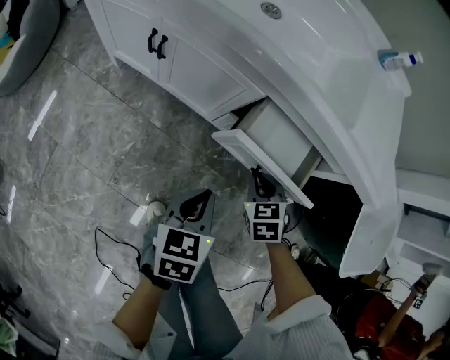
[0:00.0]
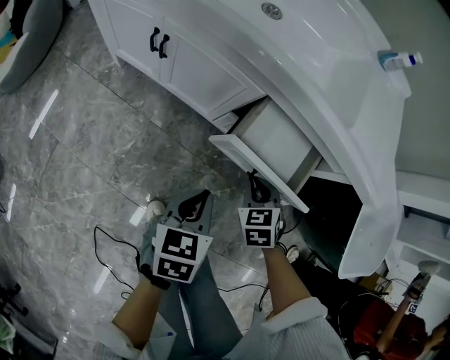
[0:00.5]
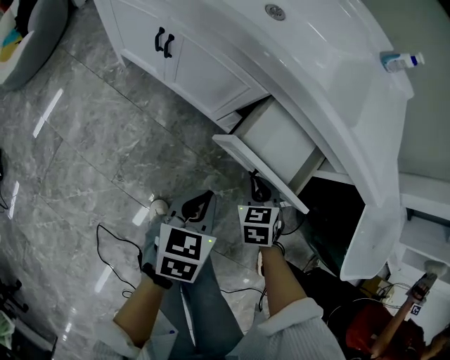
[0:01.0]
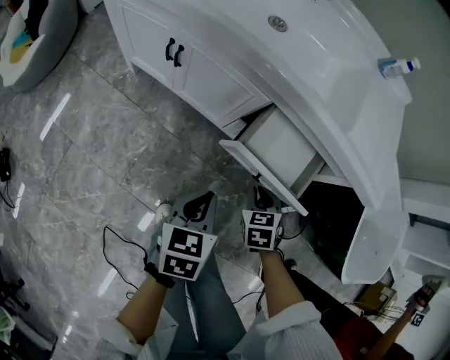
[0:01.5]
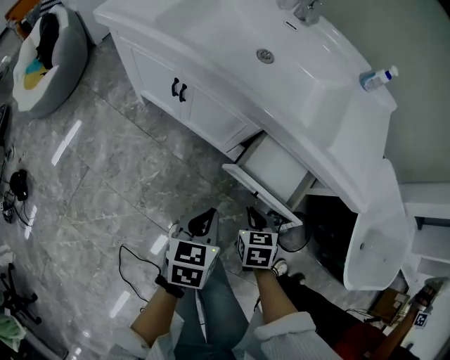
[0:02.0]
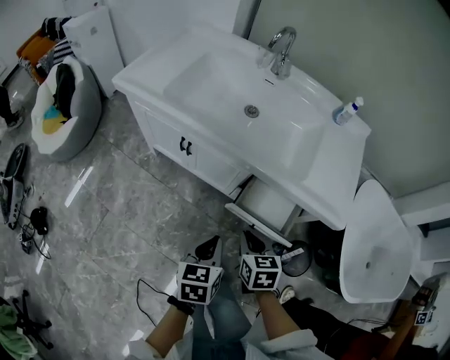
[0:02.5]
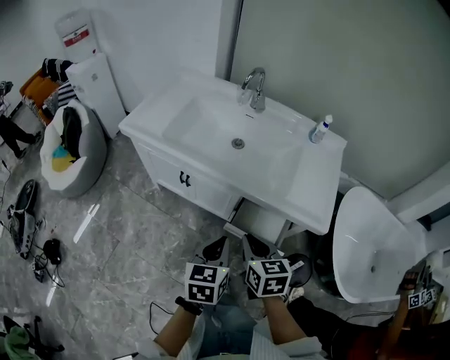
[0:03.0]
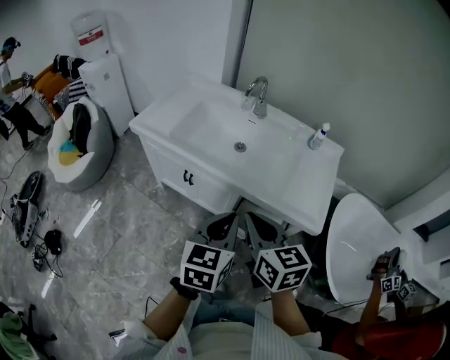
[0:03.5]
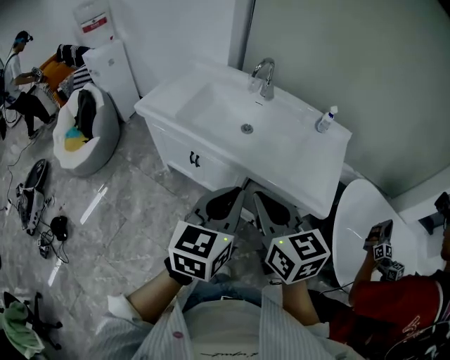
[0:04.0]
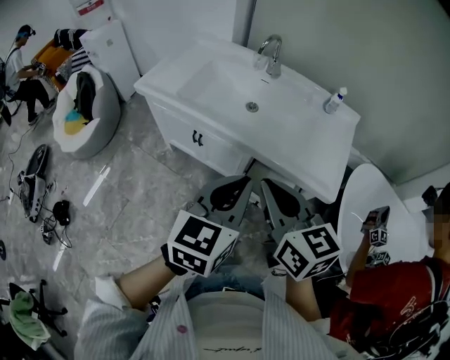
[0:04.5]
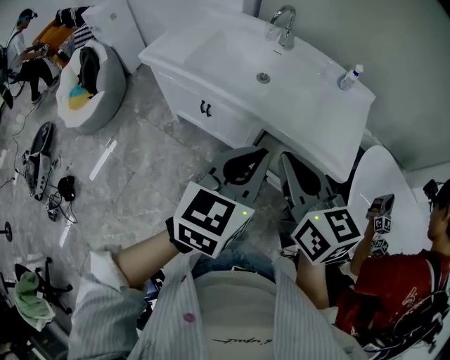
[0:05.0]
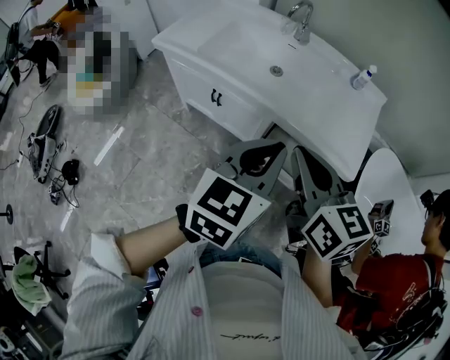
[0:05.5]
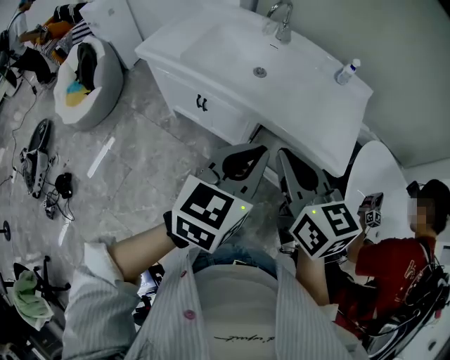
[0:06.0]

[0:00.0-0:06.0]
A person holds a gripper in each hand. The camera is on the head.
0:00.0 to 0:02.0: The right gripper travels backward and upward by some 10 cm; the left gripper shifts roughly 5 cm upward.
0:02.0 to 0:04.0: The two grippers go roughly 40 cm upward. The right gripper tilts its fingers approximately 40 degrees upward; the left gripper turns by approximately 30 degrees.
0:04.0 to 0:06.0: The grippers make only small movements.

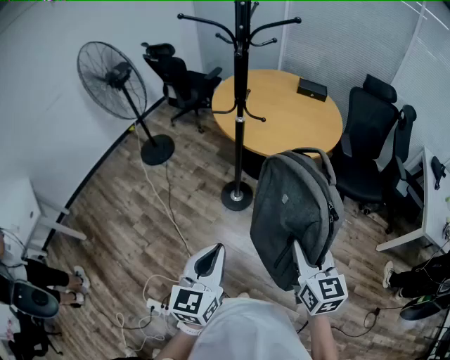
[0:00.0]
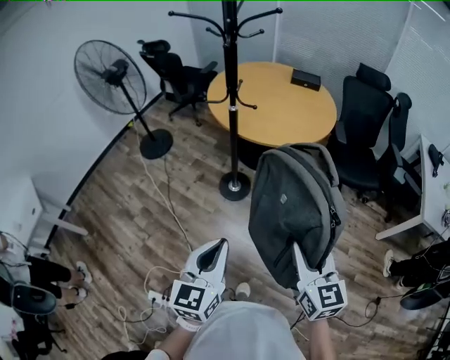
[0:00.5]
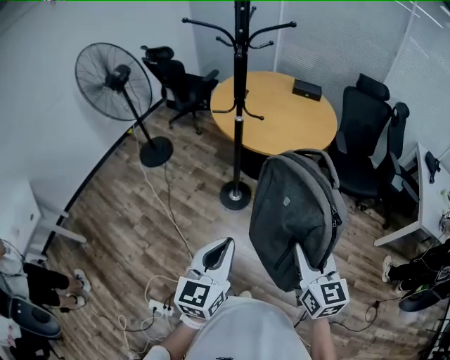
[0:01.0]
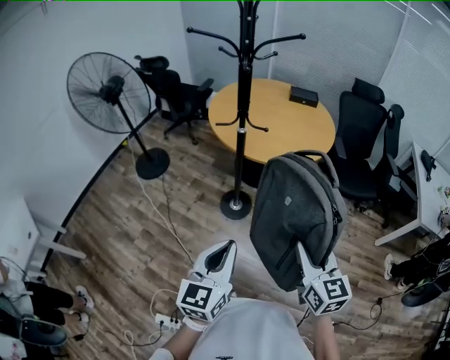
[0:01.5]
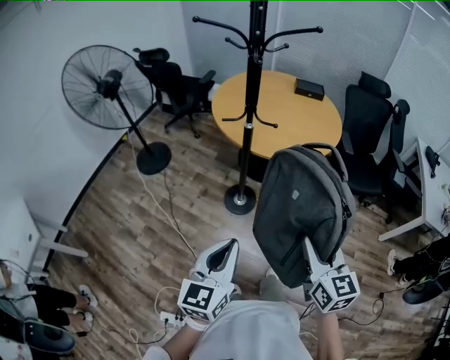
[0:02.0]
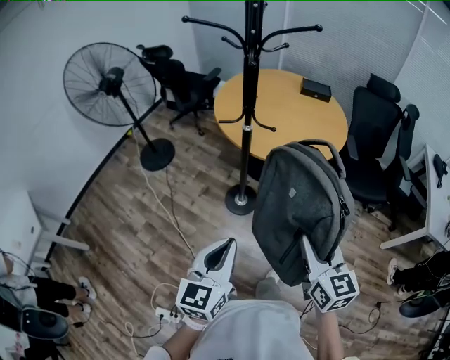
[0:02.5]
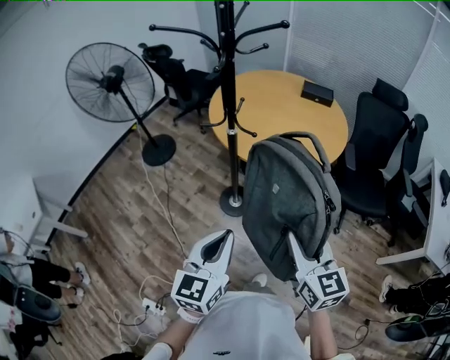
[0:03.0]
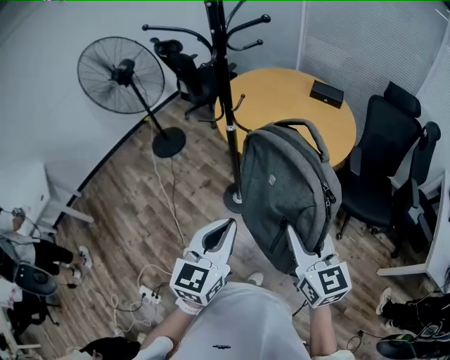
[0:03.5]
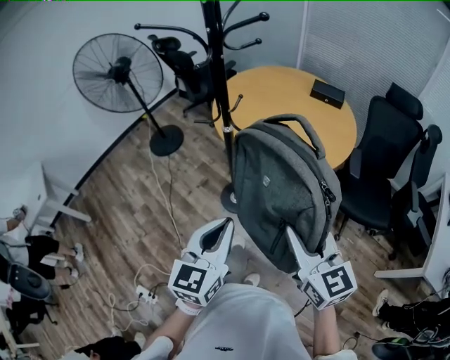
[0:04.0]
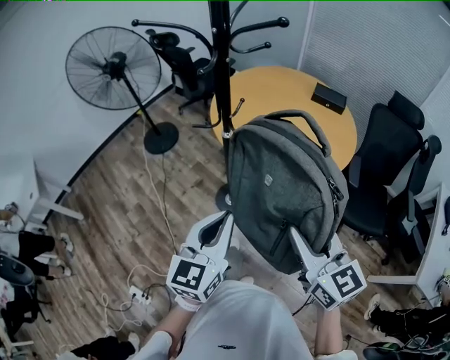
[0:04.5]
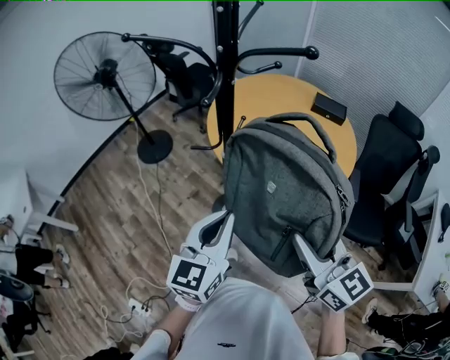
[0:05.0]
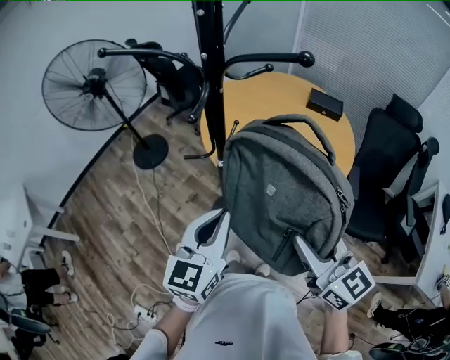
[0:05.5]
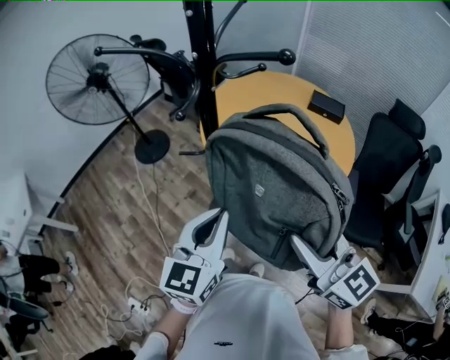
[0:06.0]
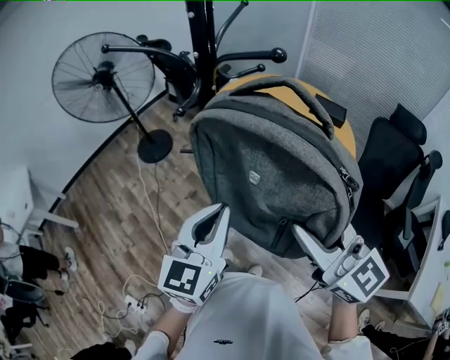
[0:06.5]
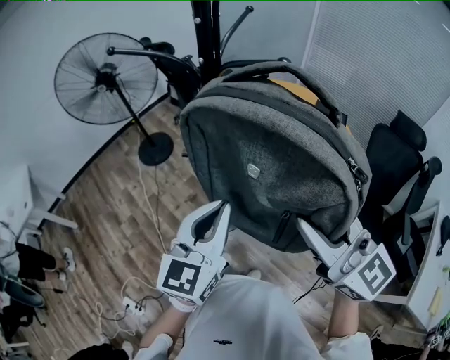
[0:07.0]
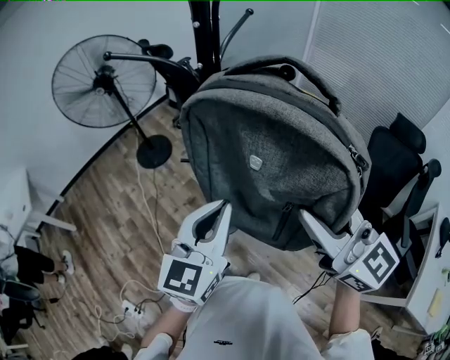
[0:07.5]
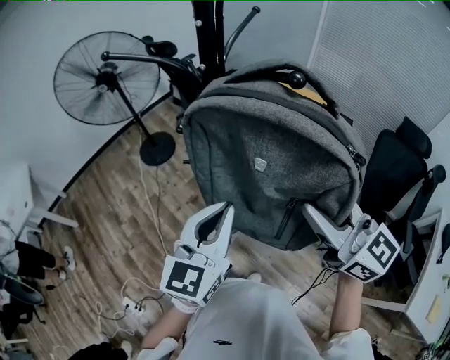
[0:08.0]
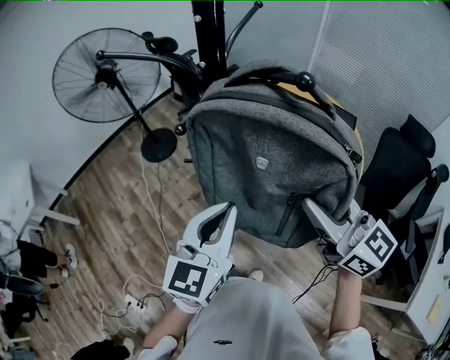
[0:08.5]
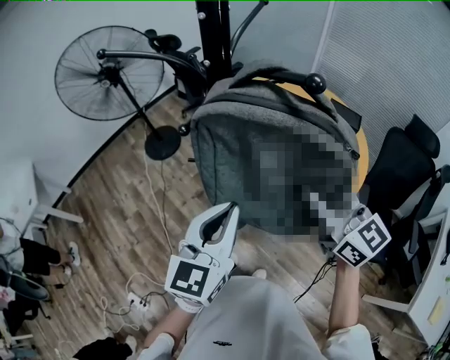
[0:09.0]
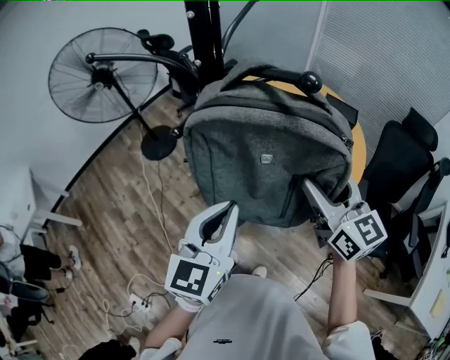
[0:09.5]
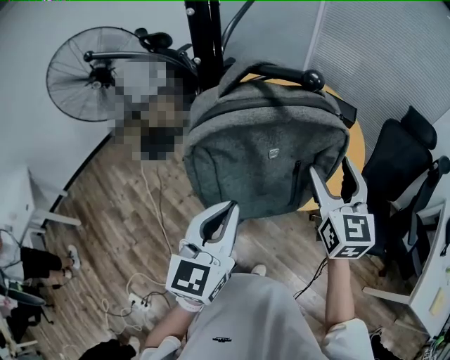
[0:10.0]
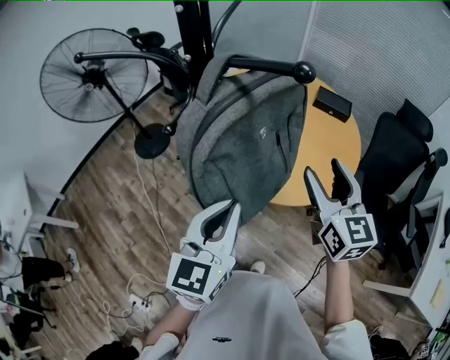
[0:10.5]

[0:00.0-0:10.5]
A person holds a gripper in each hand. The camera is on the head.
0:00.0 to 0:02.0: The two grippers go roughly 5 cm to the left.
0:02.0 to 0:04.0: Both grippers move to the right and forward, roughly 20 cm. The right gripper changes its angle by approximately 30 degrees.
0:04.0 to 0:06.5: The grippers both shift forward and upward by approximately 20 cm. The right gripper rotates roughly 20 degrees.
0:06.5 to 0:08.5: The left gripper moves about 5 cm. Meanwhile the right gripper shifts some 10 cm forward.
0:08.5 to 0:10.5: The right gripper travels forward, to the right and downward by approximately 10 cm, turns by approximately 40 degrees, and opens its fingers.

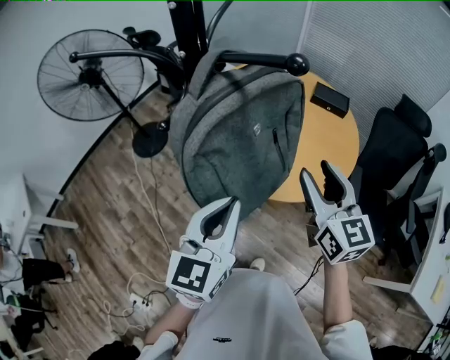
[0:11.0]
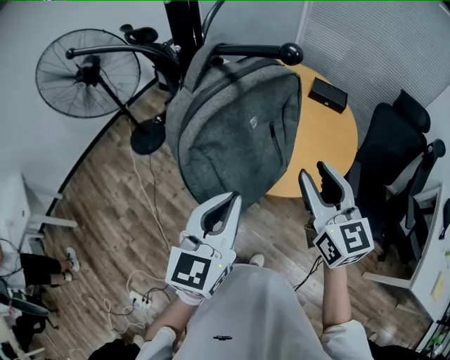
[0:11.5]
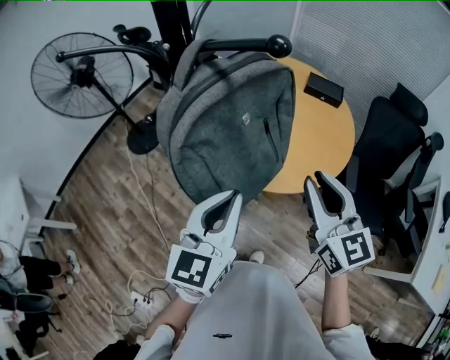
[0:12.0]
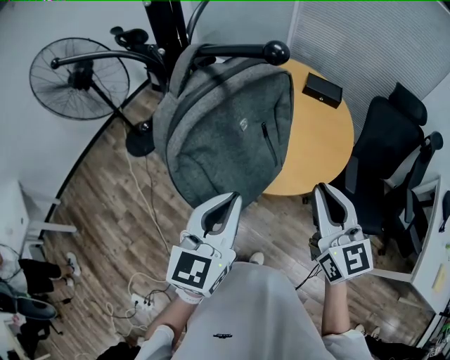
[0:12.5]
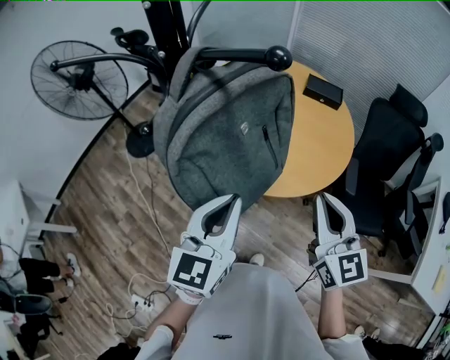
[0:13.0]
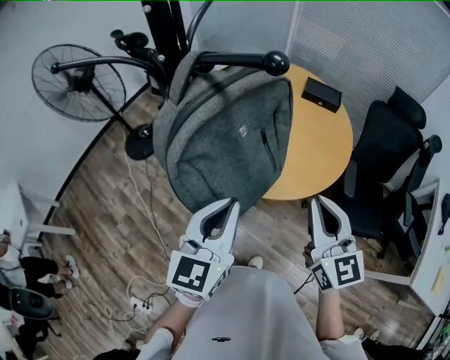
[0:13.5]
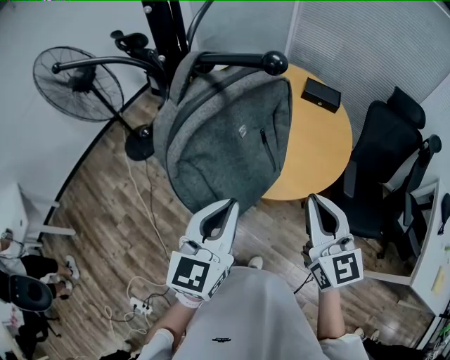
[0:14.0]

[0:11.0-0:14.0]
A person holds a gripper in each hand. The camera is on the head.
0:11.0 to 0:12.5: The right gripper heads backward, covering approximately 5 cm, and closes up.
0:12.5 to 0:14.0: Both grippers stay put.

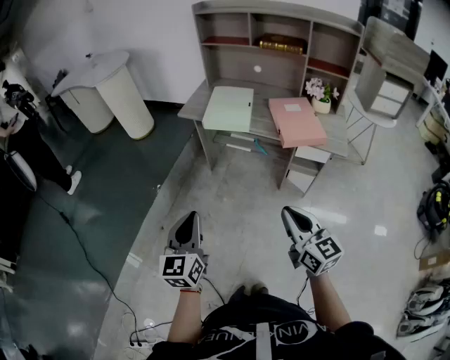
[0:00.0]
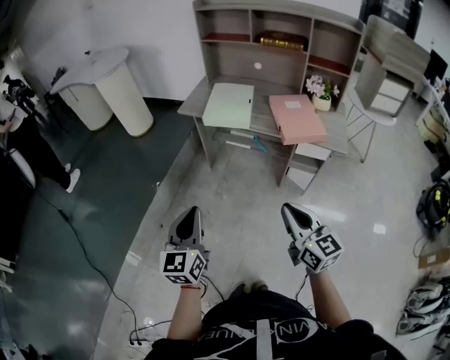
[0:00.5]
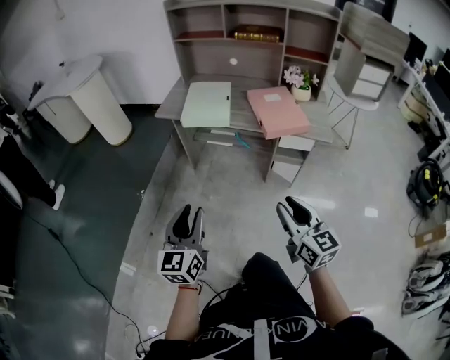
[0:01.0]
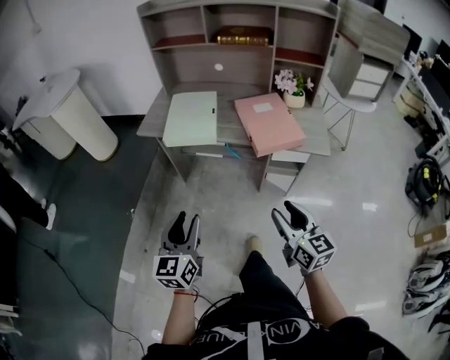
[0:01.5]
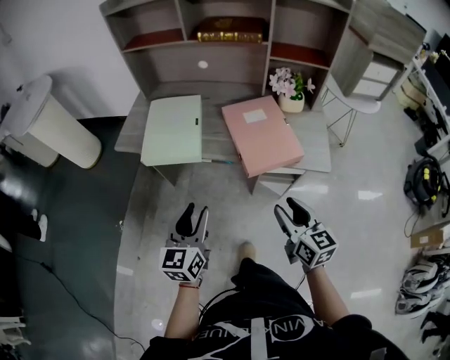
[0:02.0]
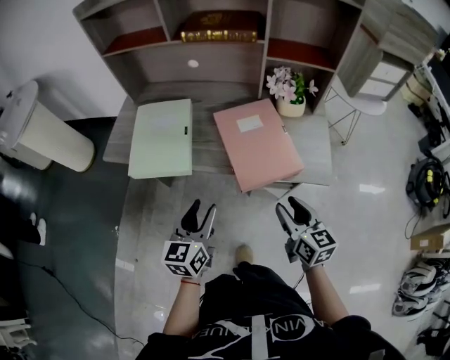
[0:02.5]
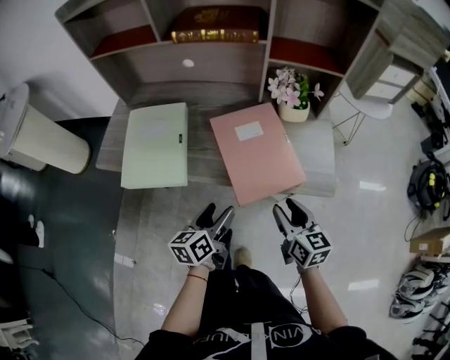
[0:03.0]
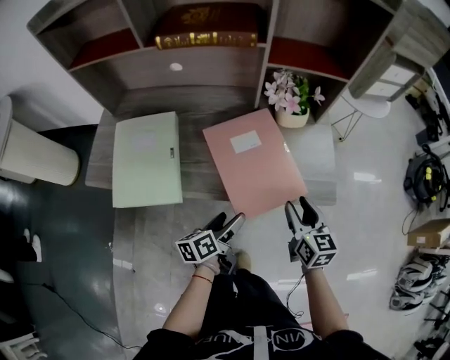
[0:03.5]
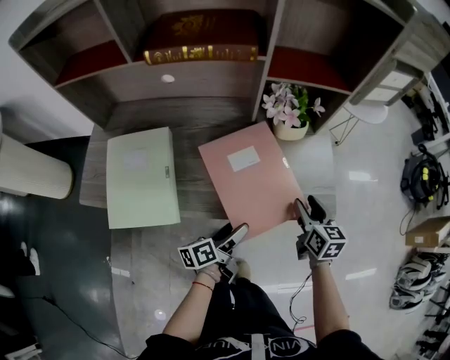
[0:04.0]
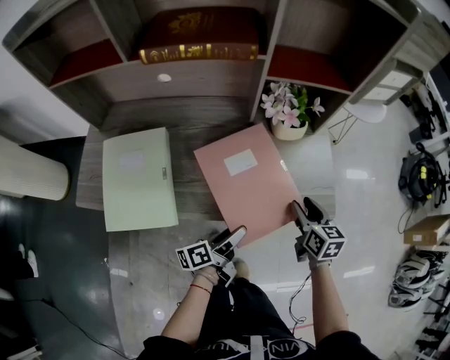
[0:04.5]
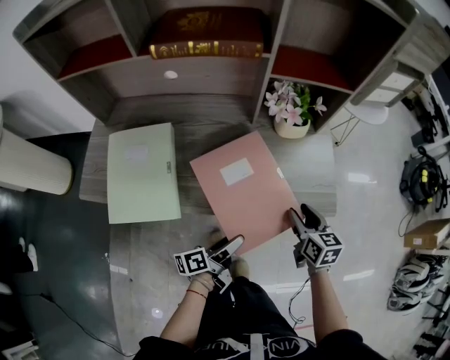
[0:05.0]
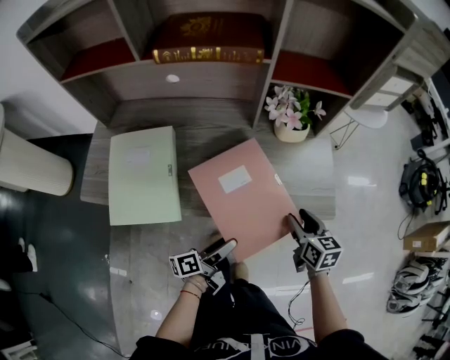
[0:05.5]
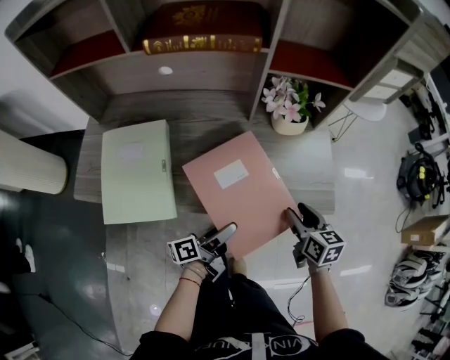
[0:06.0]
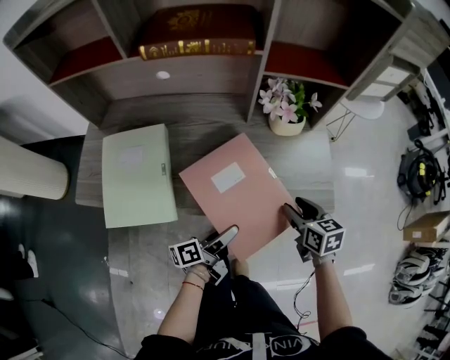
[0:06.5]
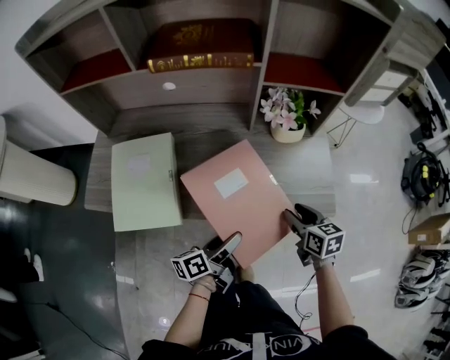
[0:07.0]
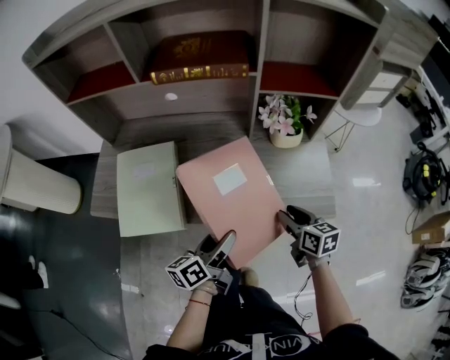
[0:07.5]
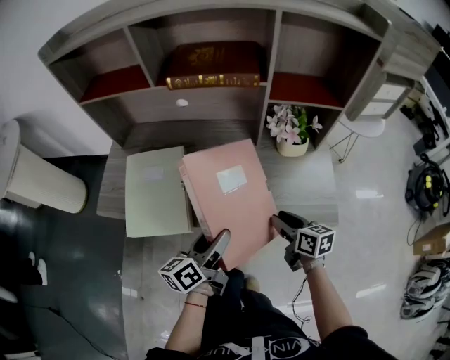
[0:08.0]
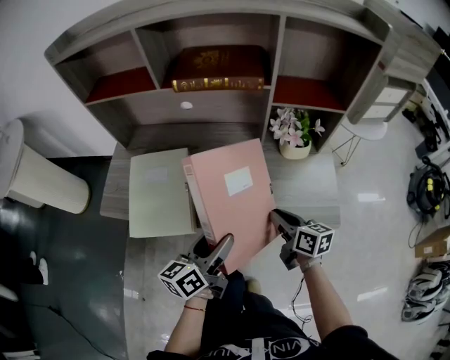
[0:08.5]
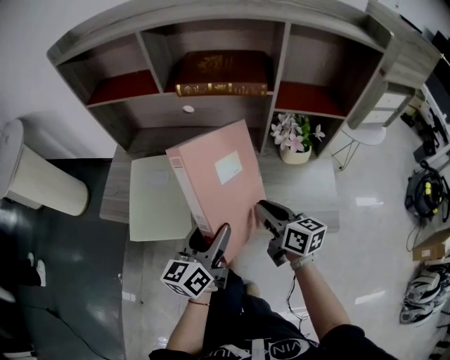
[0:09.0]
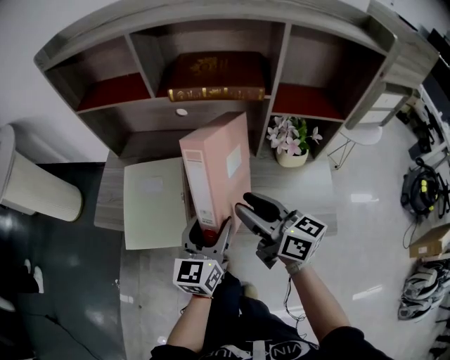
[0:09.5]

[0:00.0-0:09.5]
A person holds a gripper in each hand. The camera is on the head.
0:00.0 to 0:02.0: The two grippers go approximately 30 cm forward and to the right. The left gripper opens, while the right gripper changes its angle by some 20 degrees, and opens.
0:02.0 to 0:04.0: The left gripper ends up about 30 cm from where it was, twists some 50 degrees counterclockwise, seen from behind, and opens up. The right gripper ends up about 30 cm from where it was, and rotates roughly 30 degrees.
0:04.0 to 0:05.5: The left gripper goes some 5 cm backward.
0:05.5 to 0:07.5: The left gripper goes about 10 cm upward, and rotates some 20 degrees.
0:07.5 to 0:09.5: The right gripper is displaced upward and to the left by about 25 cm, and tilts its fingers roughly 30 degrees upward. The left gripper goes about 15 cm upward and forward, and rotates around the line of its fingers by about 40 degrees, clockwise from behind.
